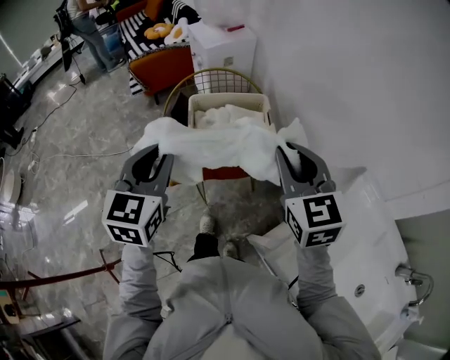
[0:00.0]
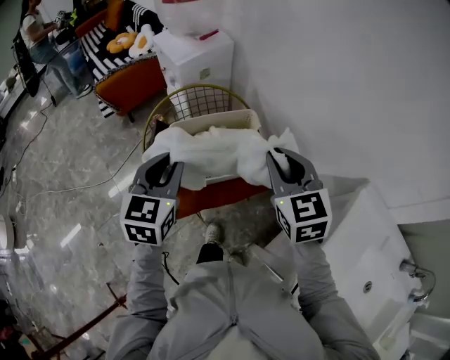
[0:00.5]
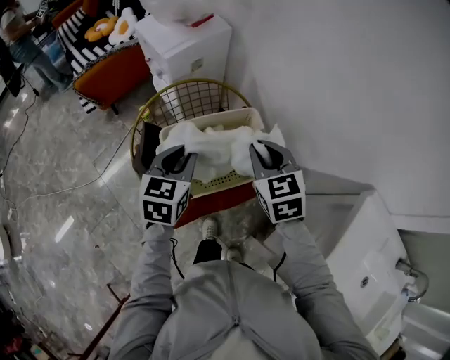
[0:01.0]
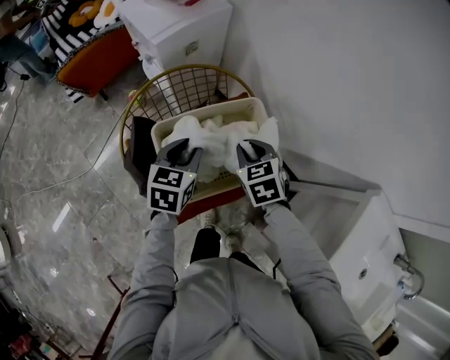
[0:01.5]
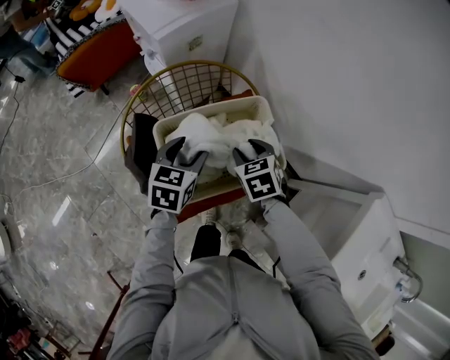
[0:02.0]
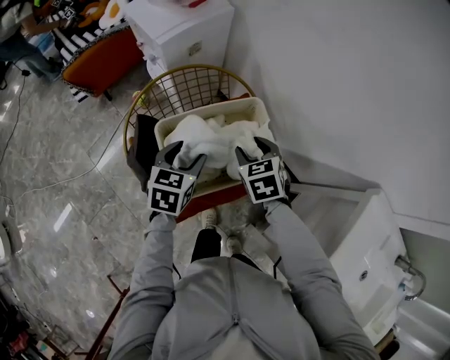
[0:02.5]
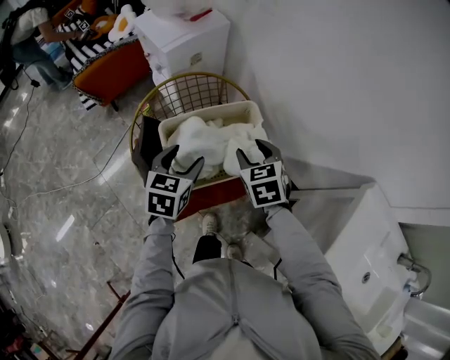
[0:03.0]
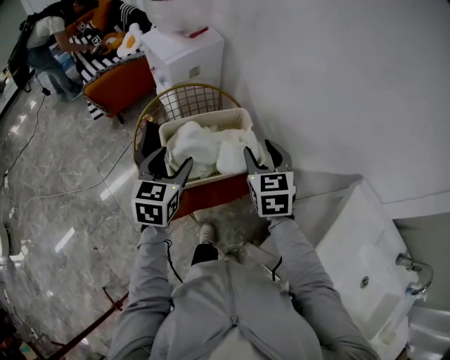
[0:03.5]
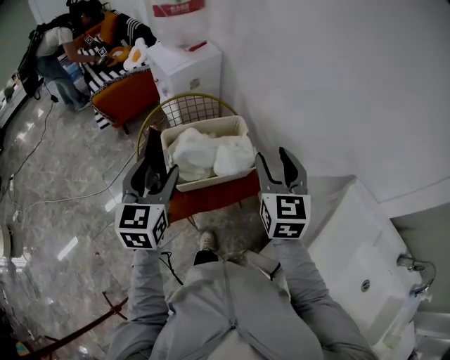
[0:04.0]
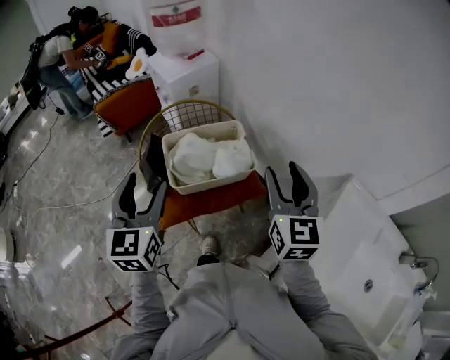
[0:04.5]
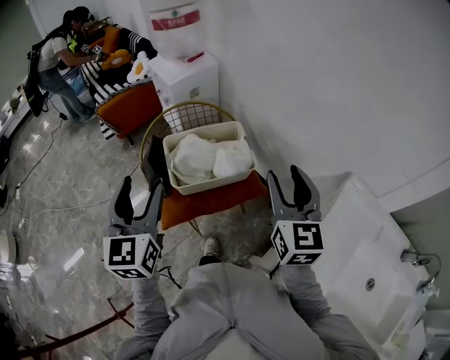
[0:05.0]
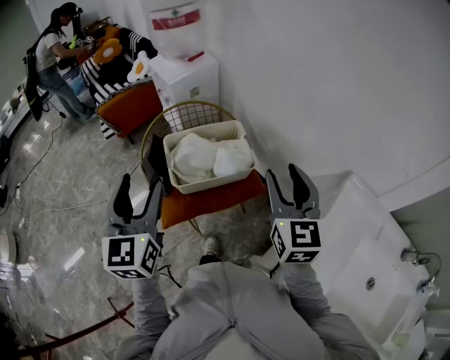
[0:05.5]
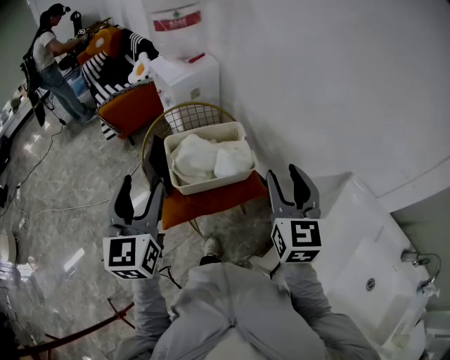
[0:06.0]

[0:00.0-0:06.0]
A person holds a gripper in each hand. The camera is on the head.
0:00.0 to 0:02.0: The left gripper shifts approximately 40 cm forward and downward, and swivels roughly 40 degrees. Meanwhile the right gripper moves downward and forward, approximately 40 cm, and angles its fingers downward, by roughly 40 degrees.
0:02.0 to 0:04.0: The grippers both shift upward and backward by approximately 30 cm. The right gripper angles its fingers upward, by approximately 40 degrees. The left gripper turns by about 30 degrees.
0:04.0 to 0:06.0: The right gripper heads backward, covering approximately 10 cm, while the left gripper is displaced backward and upward by about 10 cm.

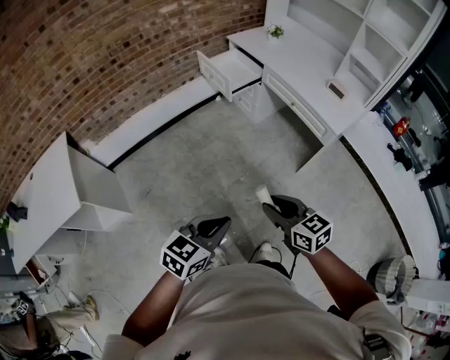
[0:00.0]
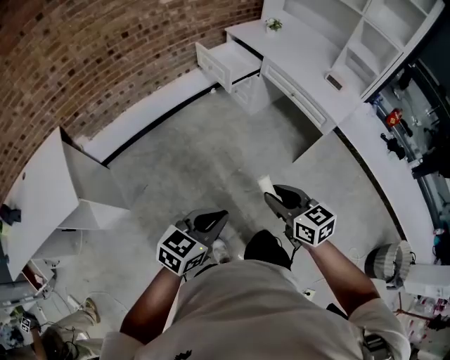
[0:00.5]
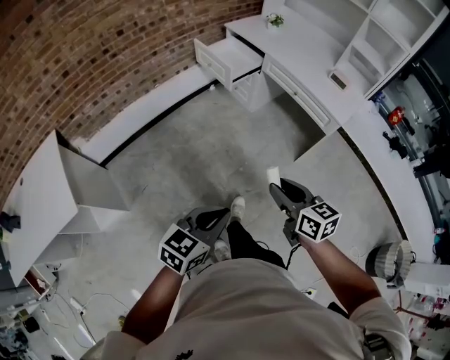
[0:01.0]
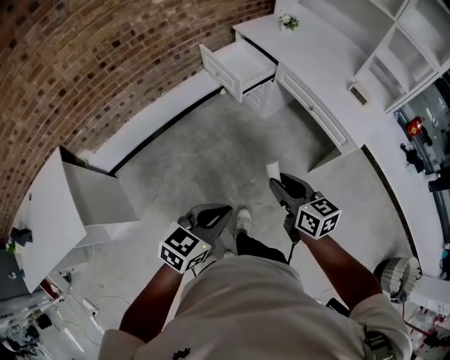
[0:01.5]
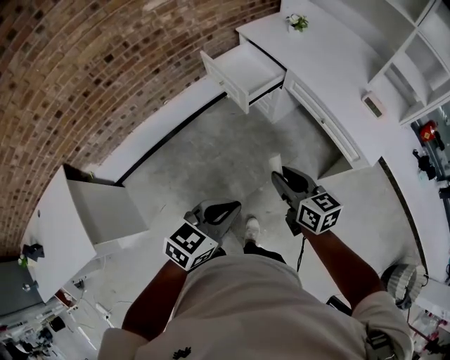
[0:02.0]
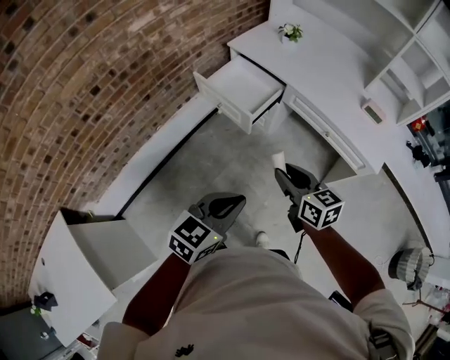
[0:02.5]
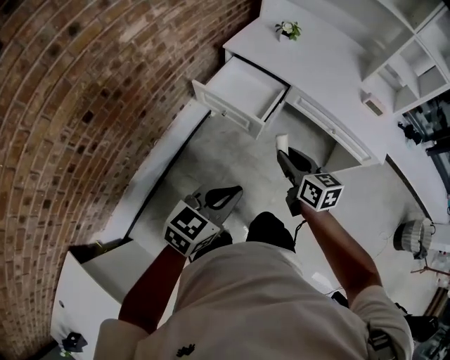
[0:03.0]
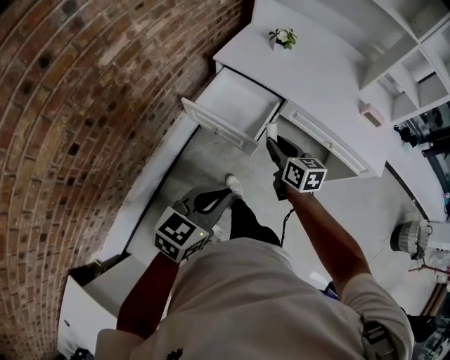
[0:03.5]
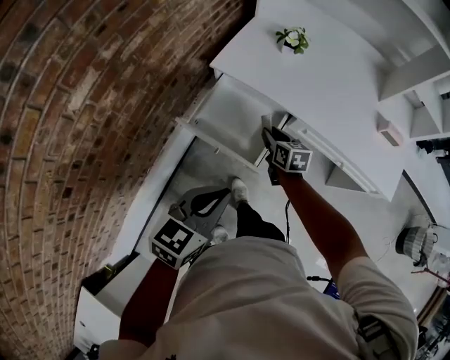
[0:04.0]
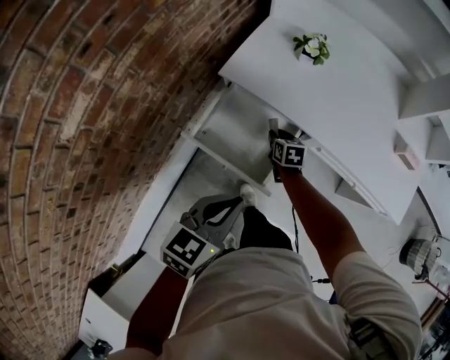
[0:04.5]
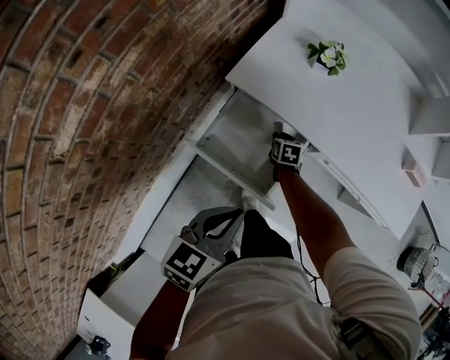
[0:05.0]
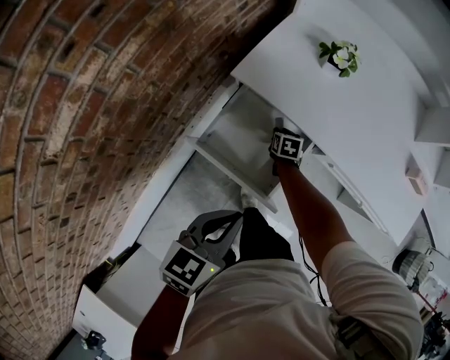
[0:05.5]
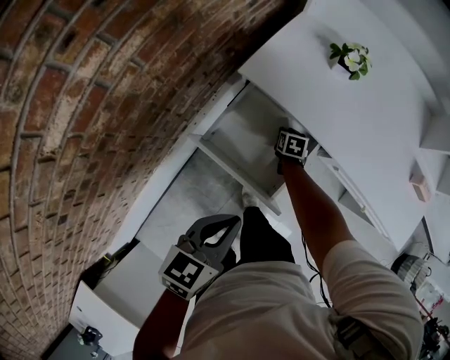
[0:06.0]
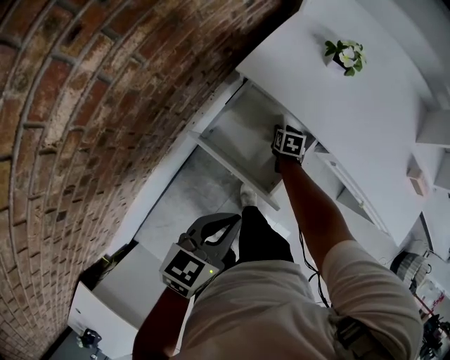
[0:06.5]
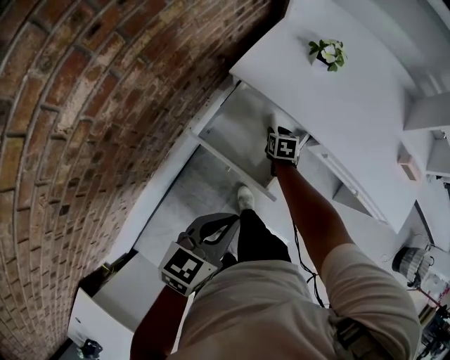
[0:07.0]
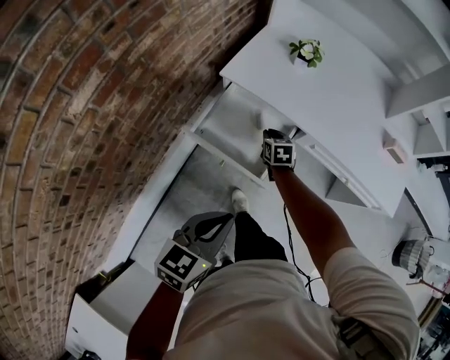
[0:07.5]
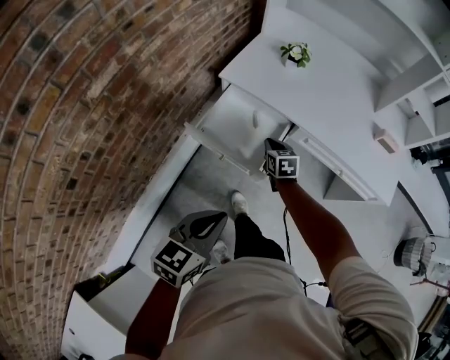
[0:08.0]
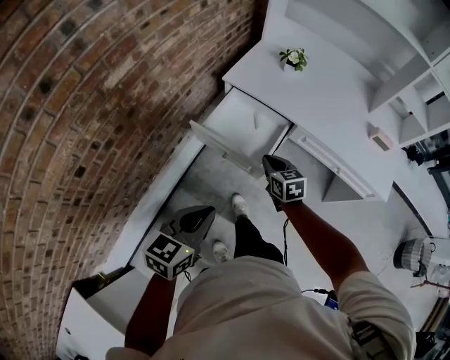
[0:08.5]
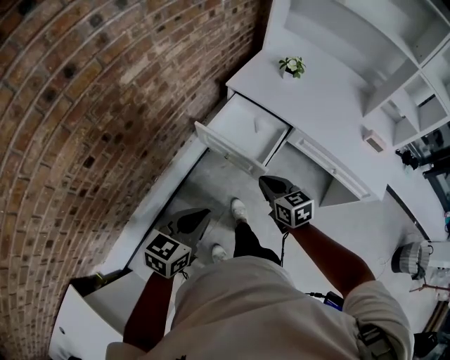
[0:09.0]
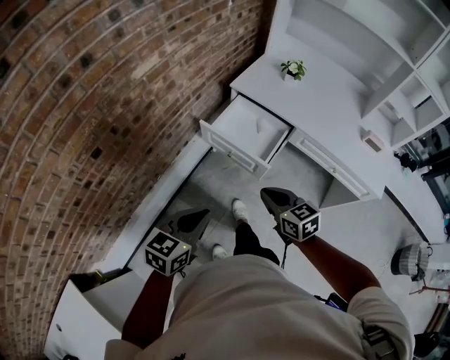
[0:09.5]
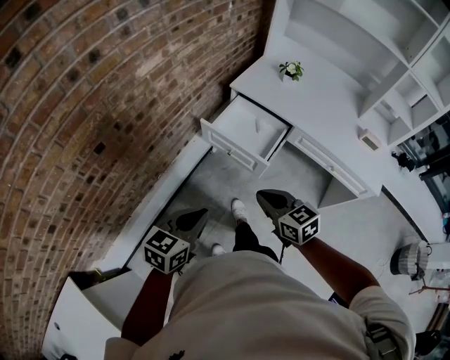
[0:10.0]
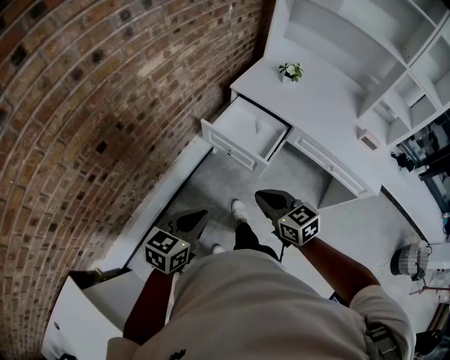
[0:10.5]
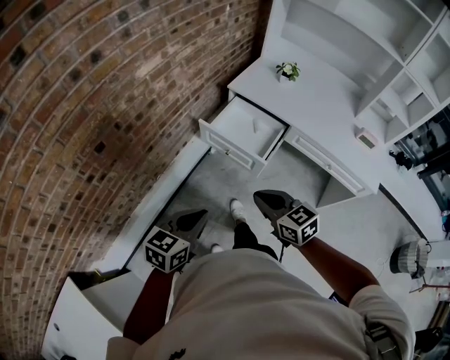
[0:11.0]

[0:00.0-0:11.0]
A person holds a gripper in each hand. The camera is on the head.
0:00.0 to 0:02.0: Both grippers travel together forward, approximately 30 cm.
0:02.0 to 0:03.5: The right gripper goes roughly 40 cm forward and to the left, and swivels about 30 degrees. Meanwhile the left gripper goes some 40 cm to the left and forward.
0:03.5 to 0:05.5: The right gripper goes roughly 40 cm downward and forward, and tilts its fingers roughly 30 degrees downward; the left gripper is displaced forward by roughly 25 cm.
0:05.5 to 0:07.5: The right gripper shifts some 15 cm upward and backward; the left gripper travels backward by about 10 cm.
0:07.5 to 0:09.0: The left gripper heads backward and to the left, covering some 15 cm, while the right gripper shifts approximately 35 cm backward and upward, and swivels about 30 degrees.
0:09.0 to 0:11.0: The right gripper heads backward and upward, covering some 15 cm. The left gripper travels backward by roughly 5 cm.

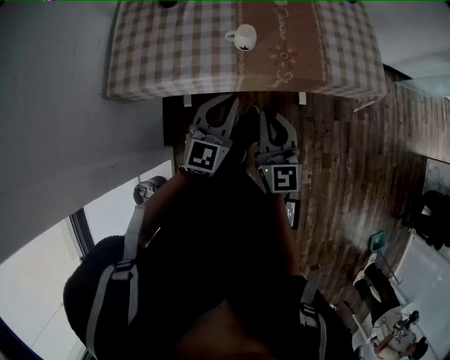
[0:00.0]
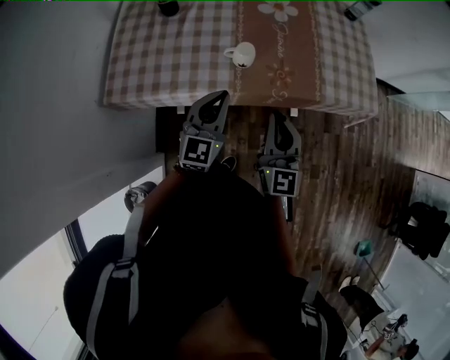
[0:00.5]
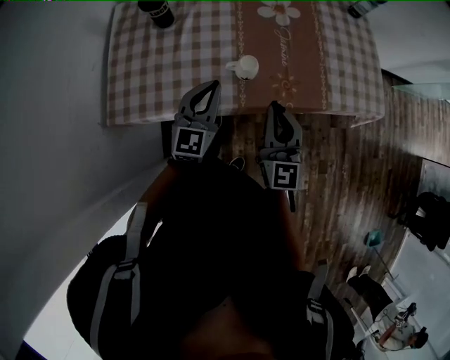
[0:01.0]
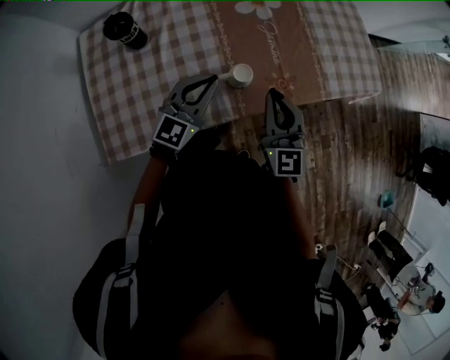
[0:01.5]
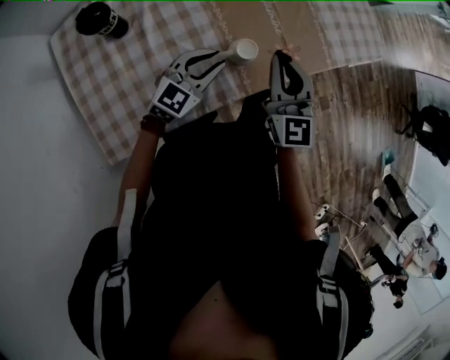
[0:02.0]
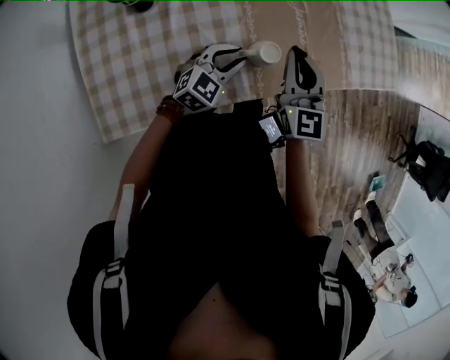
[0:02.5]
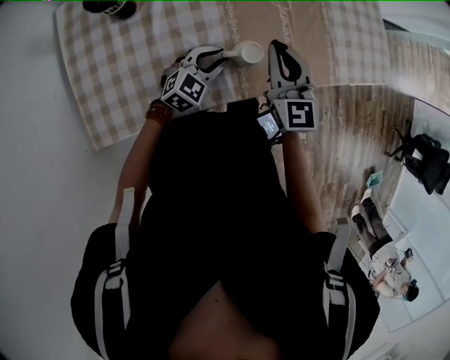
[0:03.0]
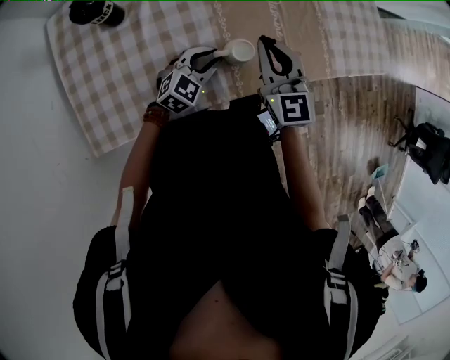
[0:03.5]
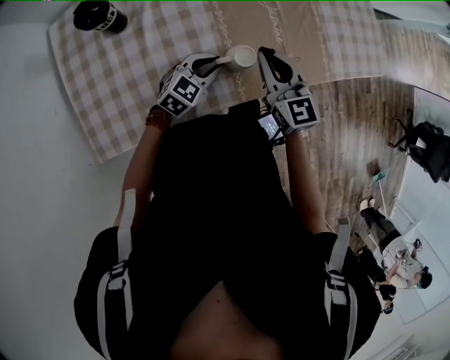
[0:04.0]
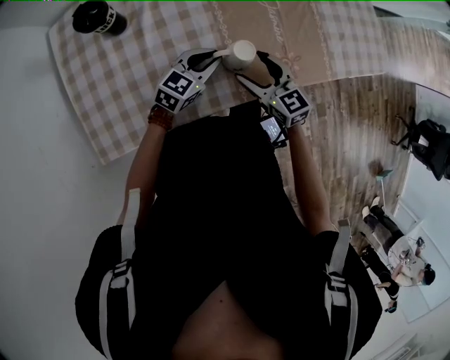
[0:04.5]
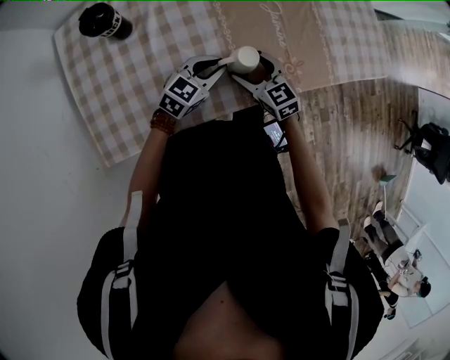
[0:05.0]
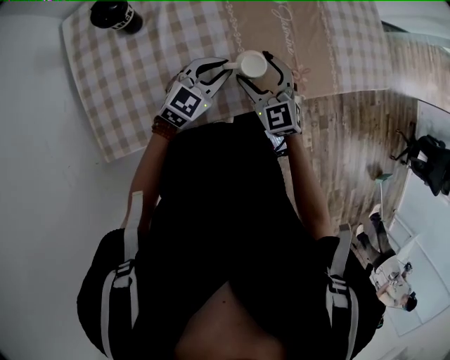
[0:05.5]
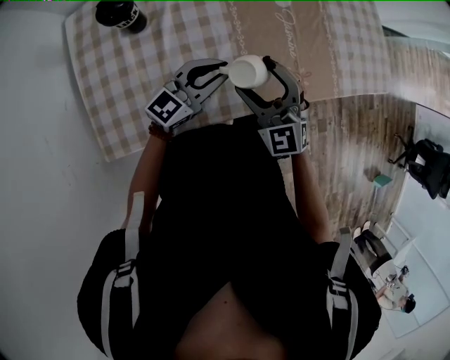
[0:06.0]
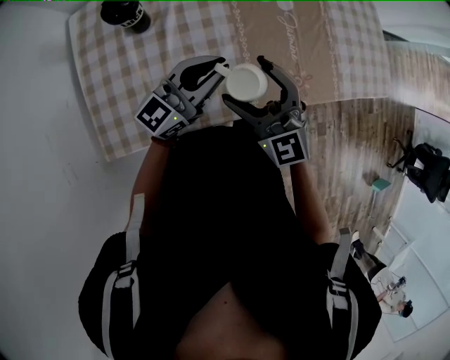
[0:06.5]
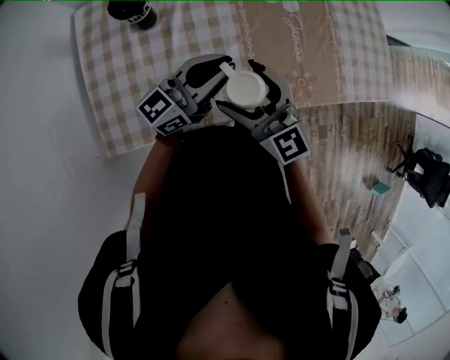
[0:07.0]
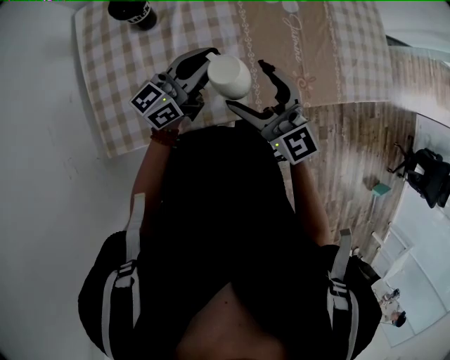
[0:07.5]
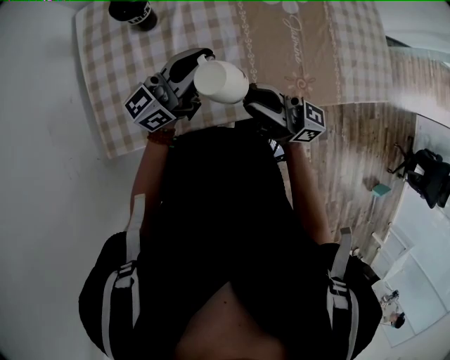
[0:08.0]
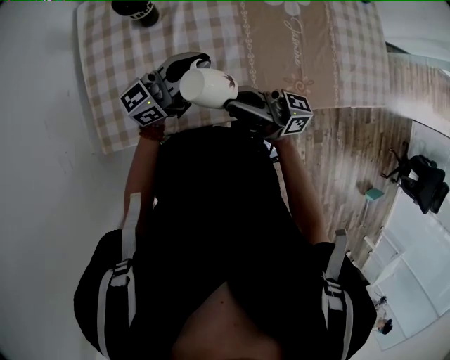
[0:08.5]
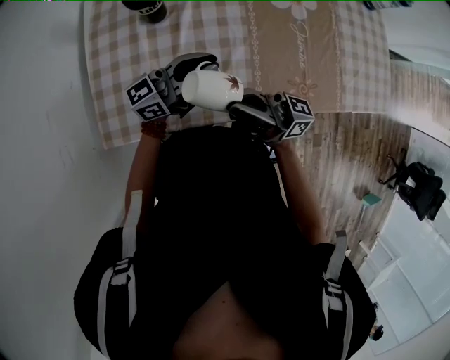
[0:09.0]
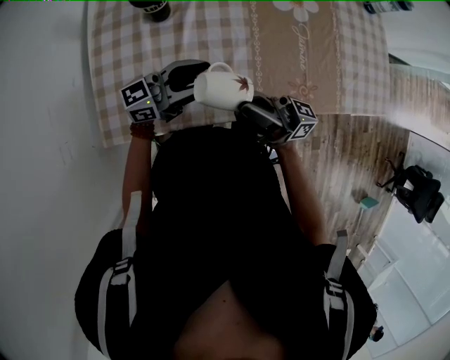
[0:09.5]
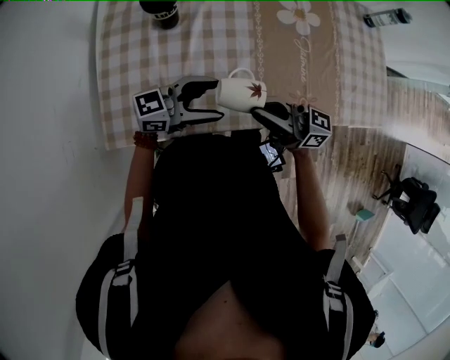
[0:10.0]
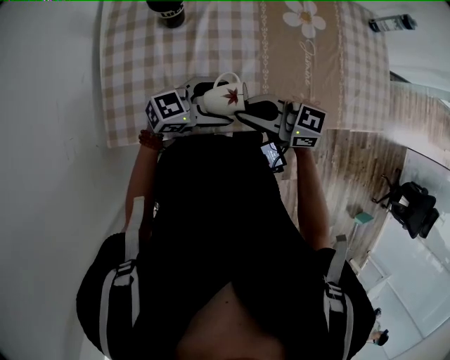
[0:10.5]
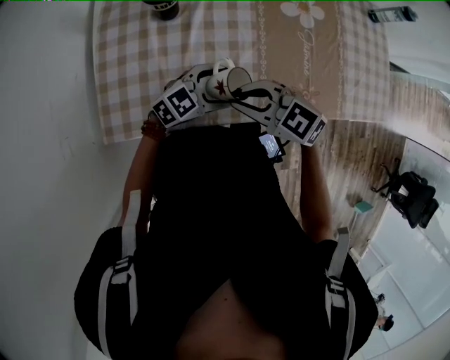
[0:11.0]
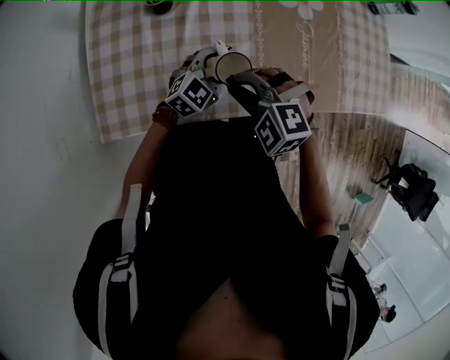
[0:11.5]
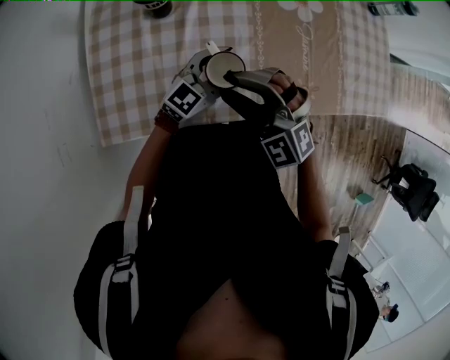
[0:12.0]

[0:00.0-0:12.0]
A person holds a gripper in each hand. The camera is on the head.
0:00.0 to 0:02.0: The right gripper changes place by approximately 25 cm, and swivels some 20 degrees. The left gripper moves about 25 cm, and swivels roughly 40 degrees.
0:02.0 to 0:04.0: The two grippers go roughly 5 cm downward. The right gripper turns by about 20 degrees.
0:04.0 to 0:06.0: The left gripper goes some 10 cm upward, and rotates about 30 degrees, while the right gripper moves to the left, roughly 5 cm, goes downward and returns, approximately 10 cm each way, changes its angle by roughly 30 degrees, and opens up.
0:06.0 to 0:08.0: The left gripper heads upward and to the left, covering about 10 cm, and turns by some 30 degrees; the right gripper travels upward by approximately 5 cm, tips its fingers upward by approximately 40 degrees, and closes up.
0:08.0 to 0:10.0: The left gripper shifts by some 10 cm, changes its angle by roughly 30 degrees, and opens its fingers.
0:10.0 to 0:12.0: The right gripper shifts by roughly 5 cm, and rolls counterclockwise, seen from behind, by about 80 degrees; the left gripper ends up roughly 10 cm from where it was, and changes its angle by some 30 degrees.
